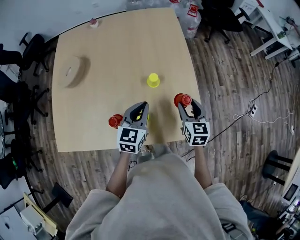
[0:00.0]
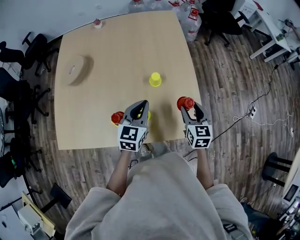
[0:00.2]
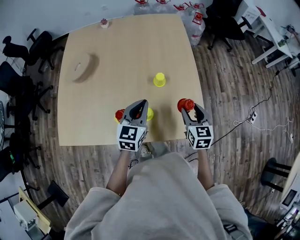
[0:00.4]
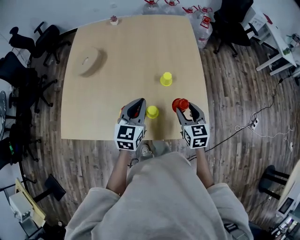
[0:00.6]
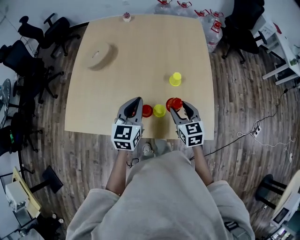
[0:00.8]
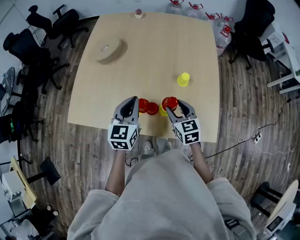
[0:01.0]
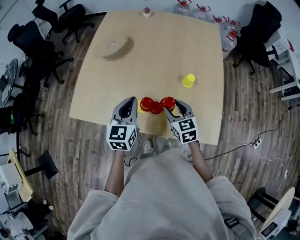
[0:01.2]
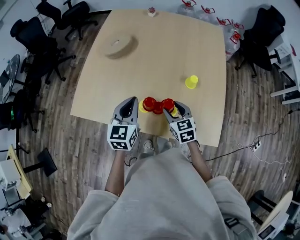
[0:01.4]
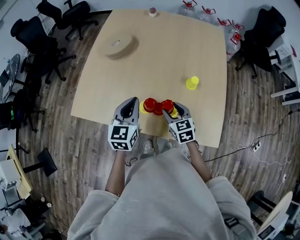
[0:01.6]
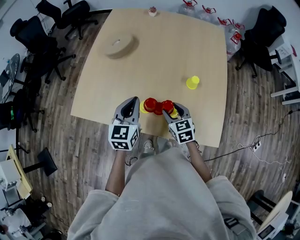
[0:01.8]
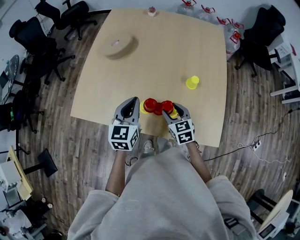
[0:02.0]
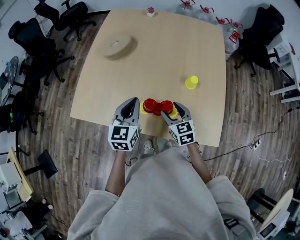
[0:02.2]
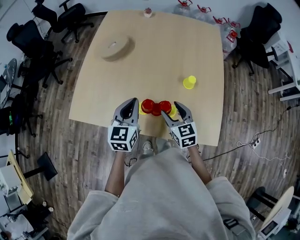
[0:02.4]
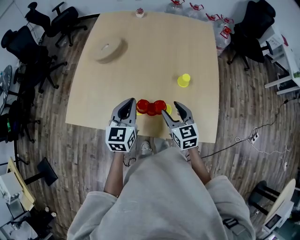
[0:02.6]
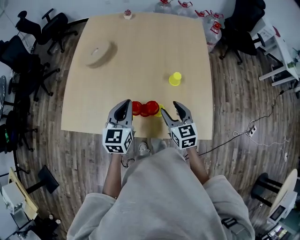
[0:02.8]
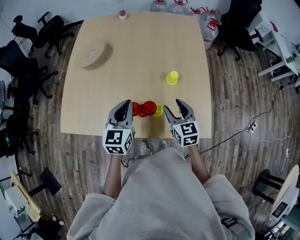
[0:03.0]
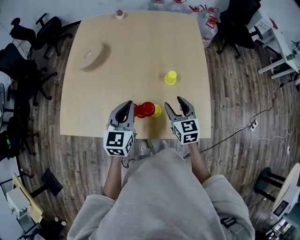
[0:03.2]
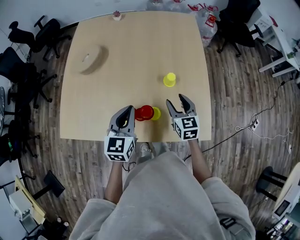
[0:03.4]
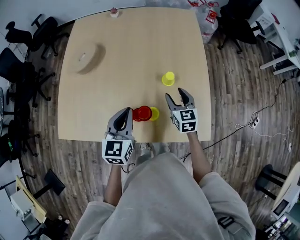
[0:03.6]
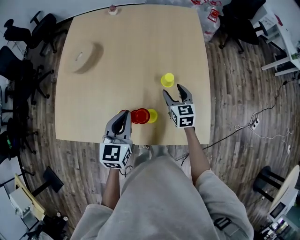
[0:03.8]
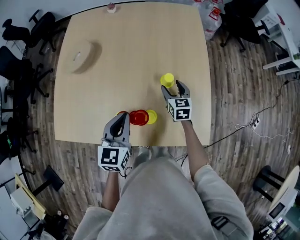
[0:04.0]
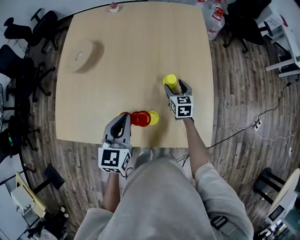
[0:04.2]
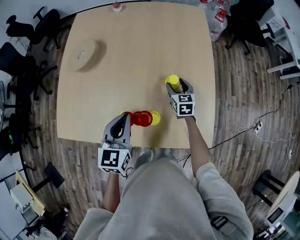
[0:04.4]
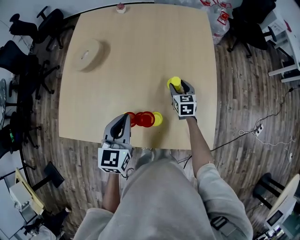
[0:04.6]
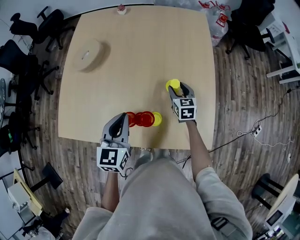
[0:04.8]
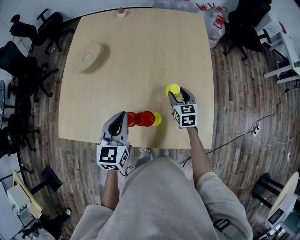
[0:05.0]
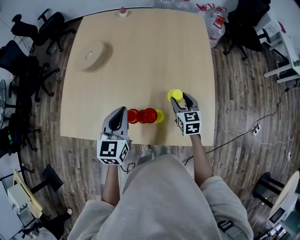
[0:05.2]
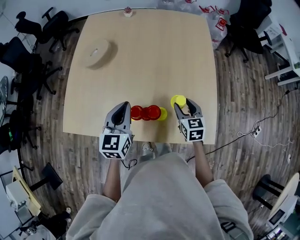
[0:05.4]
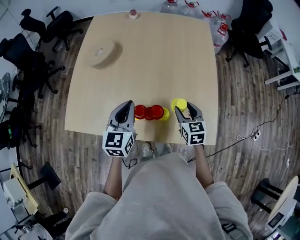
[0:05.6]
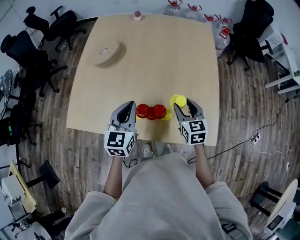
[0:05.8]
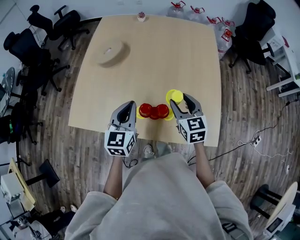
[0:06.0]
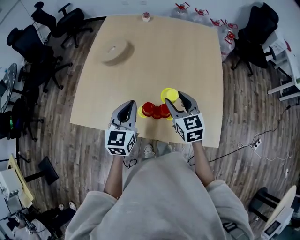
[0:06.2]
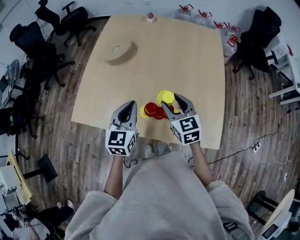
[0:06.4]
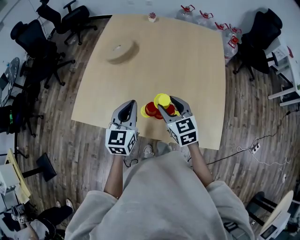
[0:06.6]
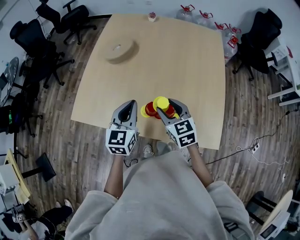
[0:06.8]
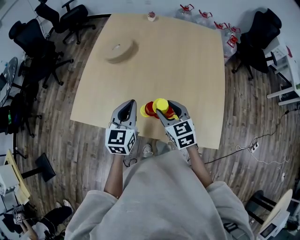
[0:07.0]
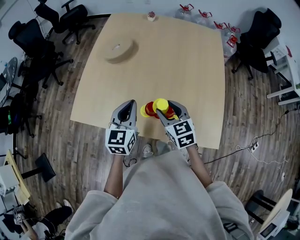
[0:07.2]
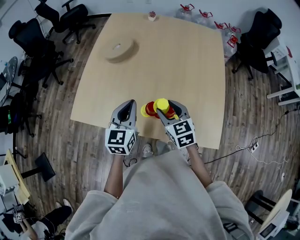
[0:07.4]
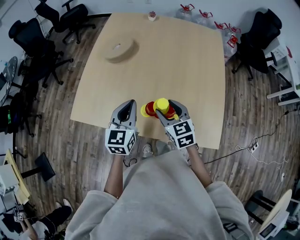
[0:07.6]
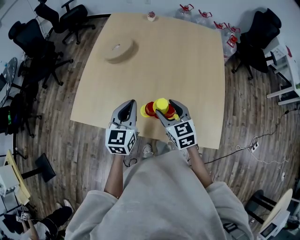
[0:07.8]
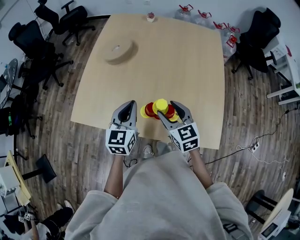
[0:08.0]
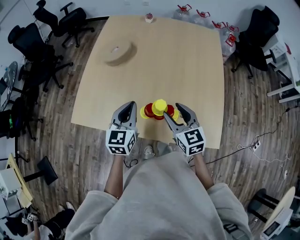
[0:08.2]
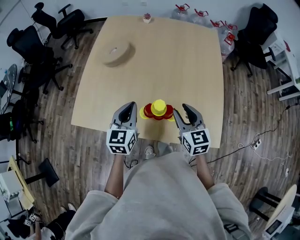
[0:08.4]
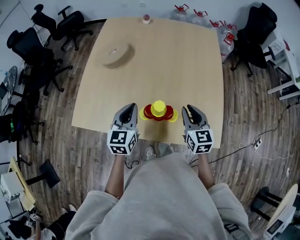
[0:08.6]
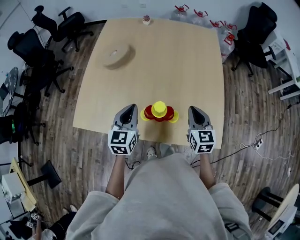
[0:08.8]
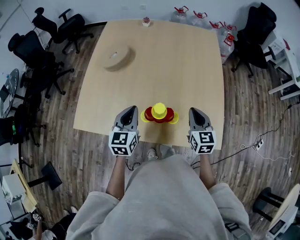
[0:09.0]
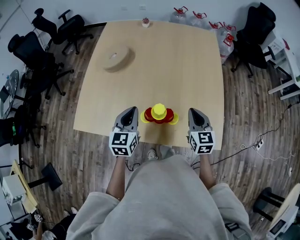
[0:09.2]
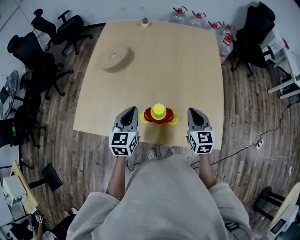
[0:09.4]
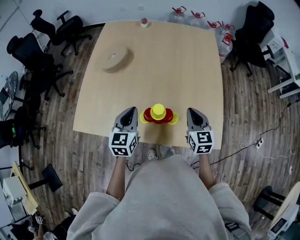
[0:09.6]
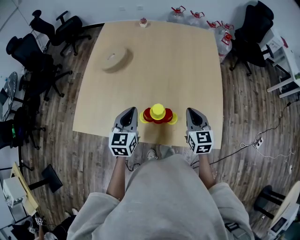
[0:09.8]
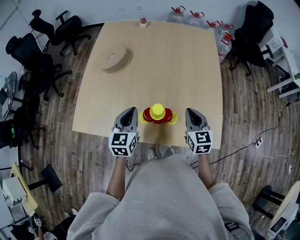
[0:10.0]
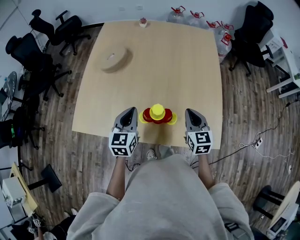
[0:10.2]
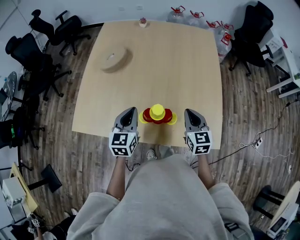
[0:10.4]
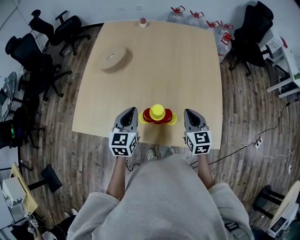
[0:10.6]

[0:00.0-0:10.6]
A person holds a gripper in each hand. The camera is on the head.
0:00.0 to 0:01.6: The right gripper moves some 25 cm, and changes its angle by roughly 40 degrees; the left gripper shifts by some 25 cm, and turns by approximately 30 degrees.
0:01.6 to 0:03.0: The right gripper is displaced to the right by about 10 cm. The left gripper is displaced to the right by roughly 5 cm.
0:03.0 to 0:04.6: The right gripper is displaced forward and downward by about 20 cm.
0:04.6 to 0:06.0: The left gripper travels to the left by about 5 cm. The right gripper heads upward, backward and to the left, covering roughly 25 cm.
0:06.0 to 0:07.6: The right gripper heads to the left, covering some 10 cm.
0:07.6 to 0:09.0: The right gripper shifts some 15 cm to the right, swivels approximately 20 degrees, and closes.
0:09.0 to 0:10.6: There are only small adjustments of the grippers.

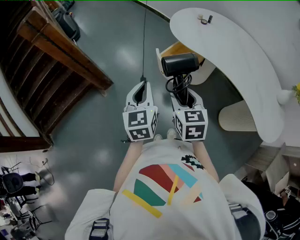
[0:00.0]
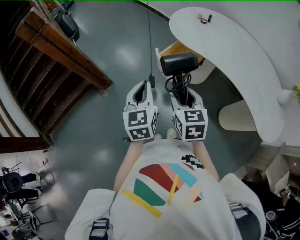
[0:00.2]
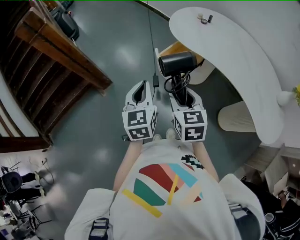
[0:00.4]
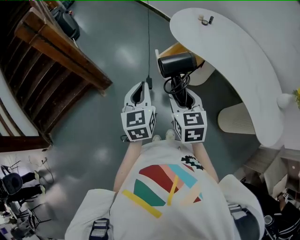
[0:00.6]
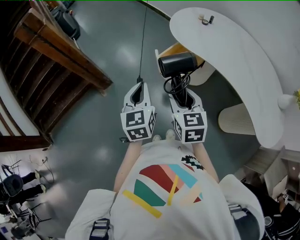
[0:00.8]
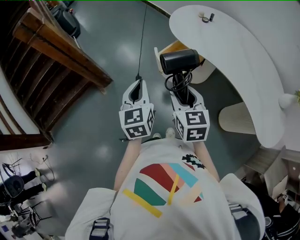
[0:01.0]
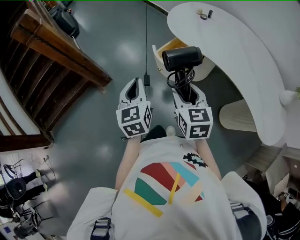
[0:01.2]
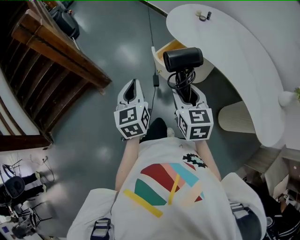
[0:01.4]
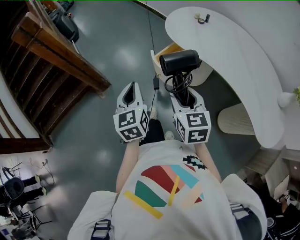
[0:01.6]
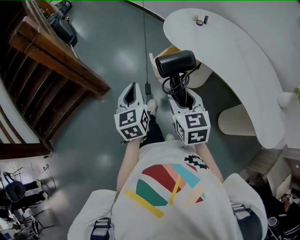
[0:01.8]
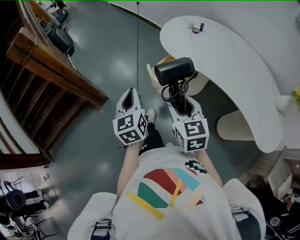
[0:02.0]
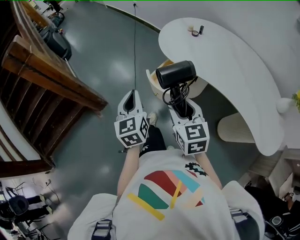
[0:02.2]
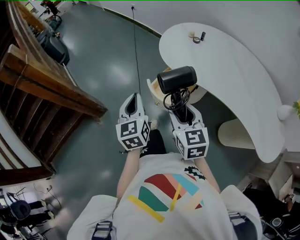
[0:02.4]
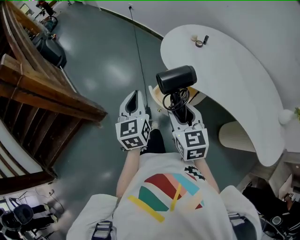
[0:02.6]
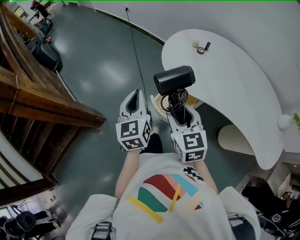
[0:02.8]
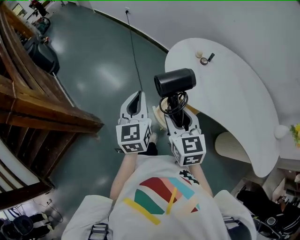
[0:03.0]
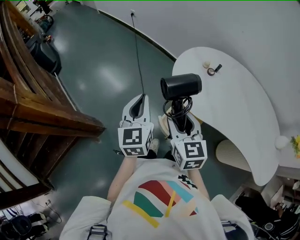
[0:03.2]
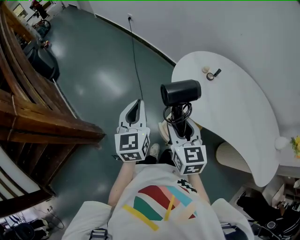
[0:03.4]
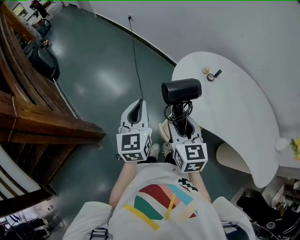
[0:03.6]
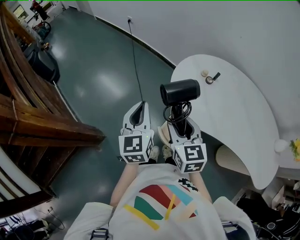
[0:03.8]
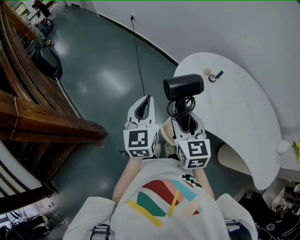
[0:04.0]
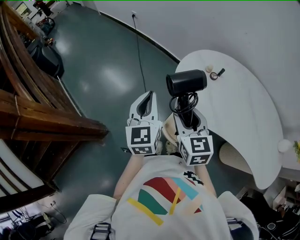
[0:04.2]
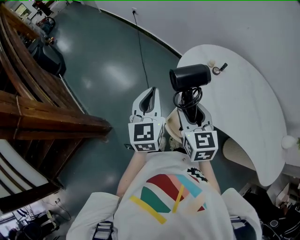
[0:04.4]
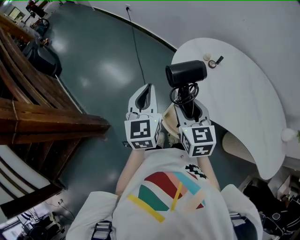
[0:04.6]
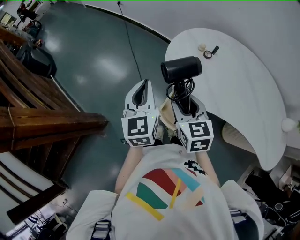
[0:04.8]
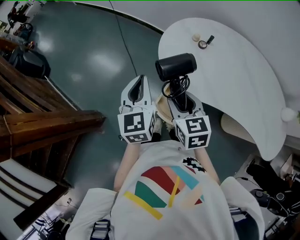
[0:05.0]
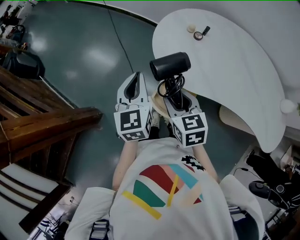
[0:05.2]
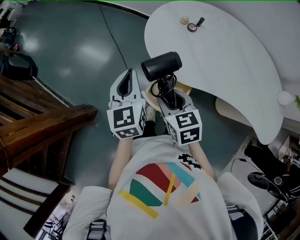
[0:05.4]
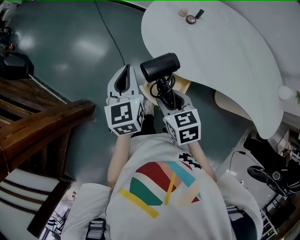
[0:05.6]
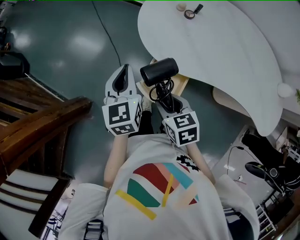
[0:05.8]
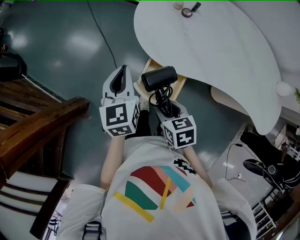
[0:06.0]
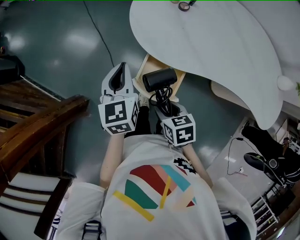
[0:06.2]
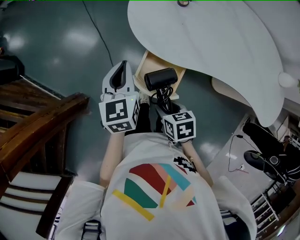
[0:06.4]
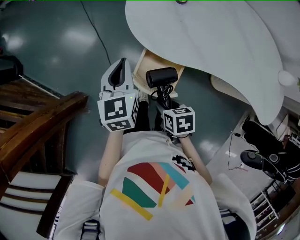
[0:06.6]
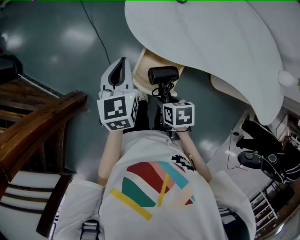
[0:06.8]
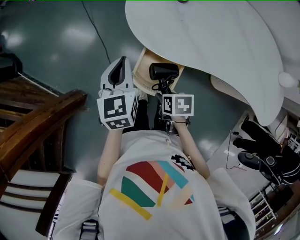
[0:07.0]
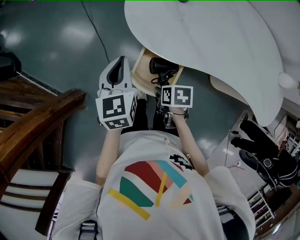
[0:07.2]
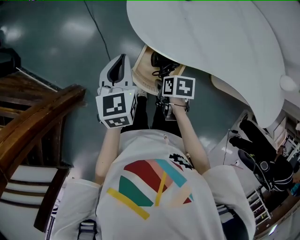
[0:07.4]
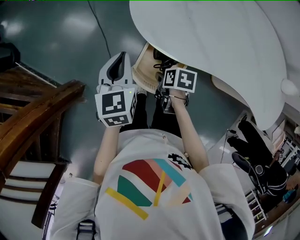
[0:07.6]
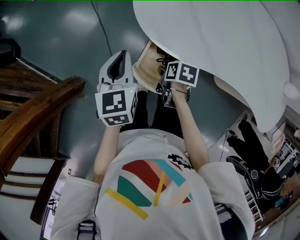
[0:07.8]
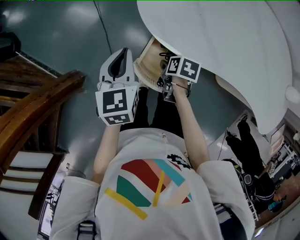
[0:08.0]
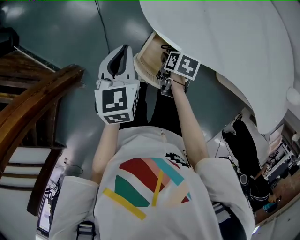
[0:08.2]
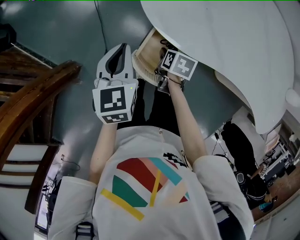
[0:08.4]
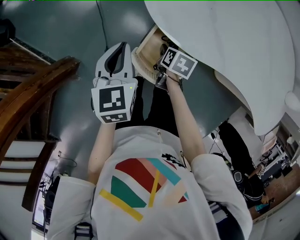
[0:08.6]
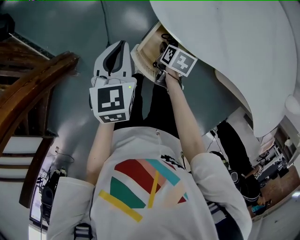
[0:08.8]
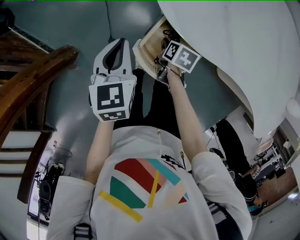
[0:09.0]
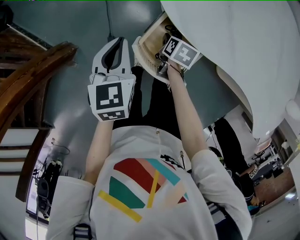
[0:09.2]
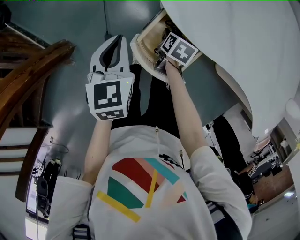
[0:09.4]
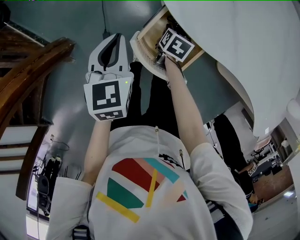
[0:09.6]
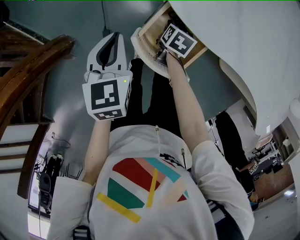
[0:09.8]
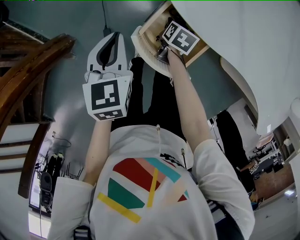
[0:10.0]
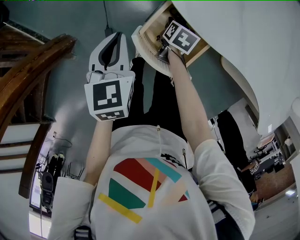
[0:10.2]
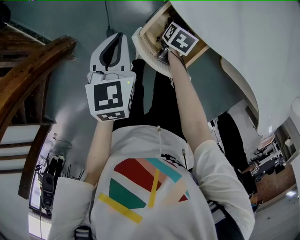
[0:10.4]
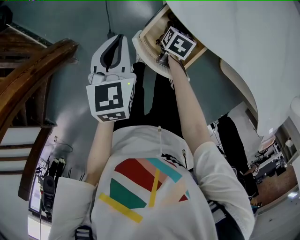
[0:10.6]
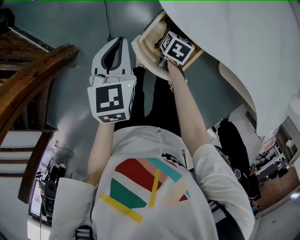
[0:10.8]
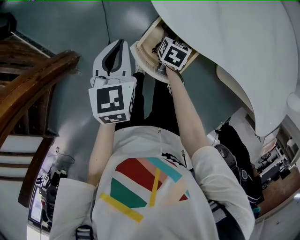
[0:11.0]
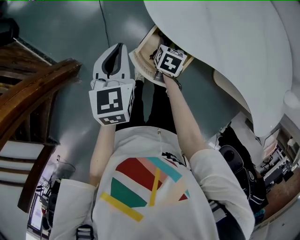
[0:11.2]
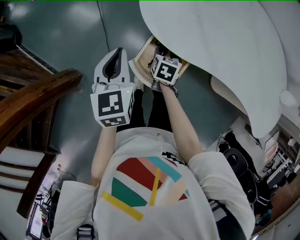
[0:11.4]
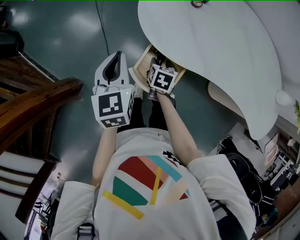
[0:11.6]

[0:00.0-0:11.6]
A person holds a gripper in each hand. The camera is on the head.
0:00.0 to 0:01.4: The right gripper moves about 5 cm.
0:01.4 to 0:02.8: The grippers both shift forward by about 25 cm.
0:02.8 to 0:04.4: Both grippers move forward, about 15 cm.
0:04.4 to 0:05.8: The left gripper shifts roughly 10 cm downward and to the right; the right gripper shifts some 20 cm downward and backward, and swivels some 30 degrees.
0:05.8 to 0:07.2: The right gripper moves downward, approximately 15 cm, and rotates about 40 degrees.
0:07.2 to 0:08.8: The left gripper heads downward, covering roughly 10 cm, while the right gripper moves downward and forward, roughly 15 cm.
0:08.8 to 0:10.2: The grippers both shift downward by some 5 cm.
0:10.2 to 0:11.6: The grippers both shift upward by approximately 15 cm.

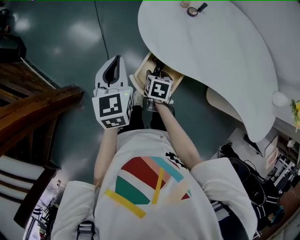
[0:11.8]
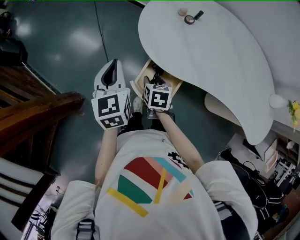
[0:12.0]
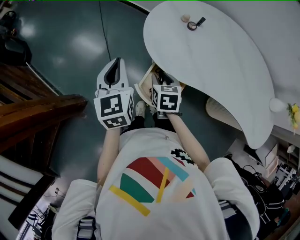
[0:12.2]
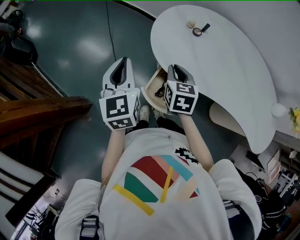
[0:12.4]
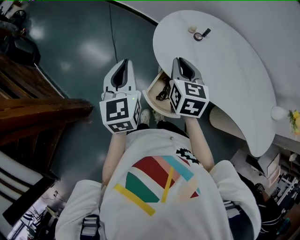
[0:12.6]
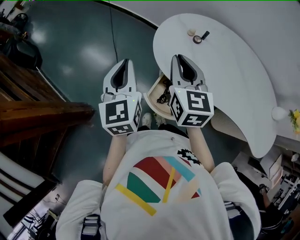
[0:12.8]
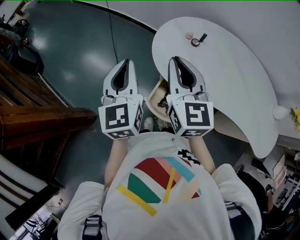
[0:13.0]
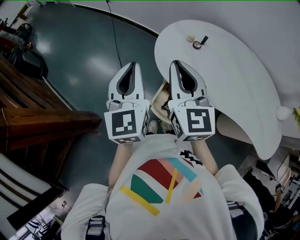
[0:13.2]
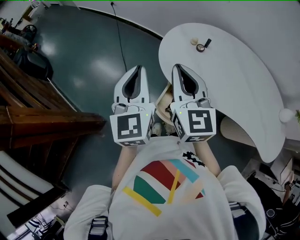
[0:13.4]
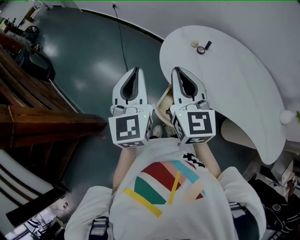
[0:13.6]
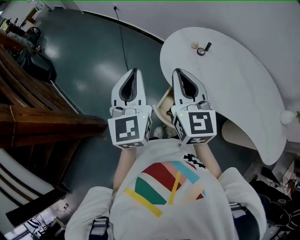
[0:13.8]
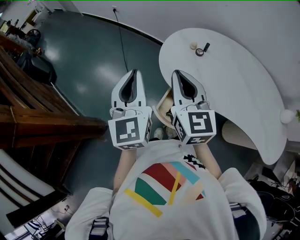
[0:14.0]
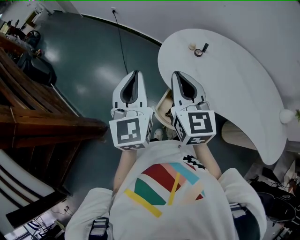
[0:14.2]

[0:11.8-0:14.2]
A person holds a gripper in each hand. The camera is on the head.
0:11.8 to 0:13.0: The left gripper heads upward, covering roughly 15 cm; the right gripper goes some 35 cm upward, tips its fingers upward by roughly 50 degrees, and closes up.
0:13.0 to 0:14.2: The left gripper shifts by roughly 5 cm.
